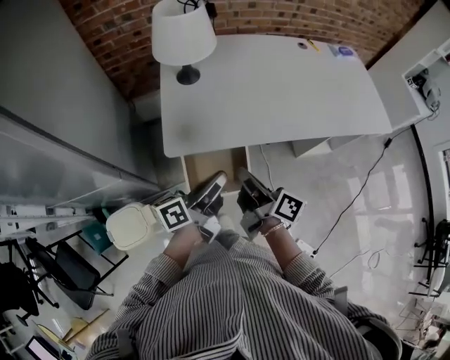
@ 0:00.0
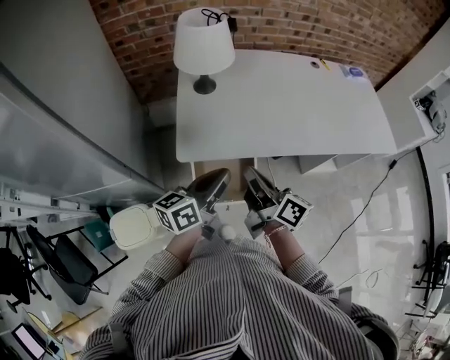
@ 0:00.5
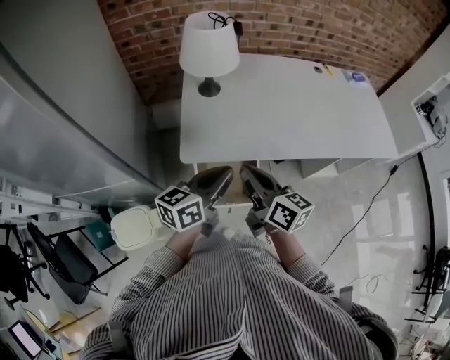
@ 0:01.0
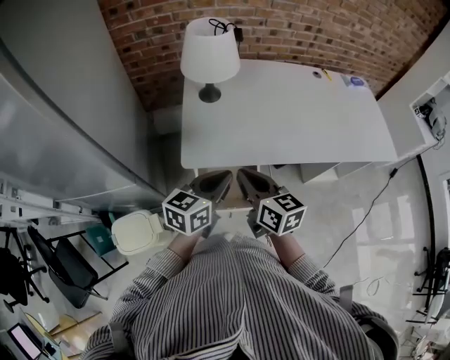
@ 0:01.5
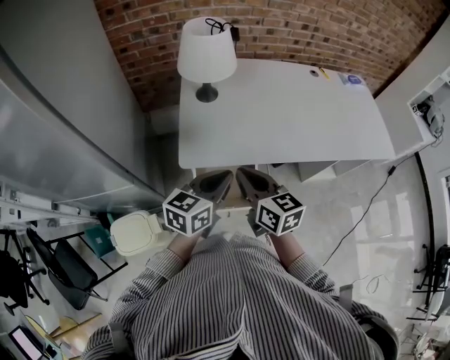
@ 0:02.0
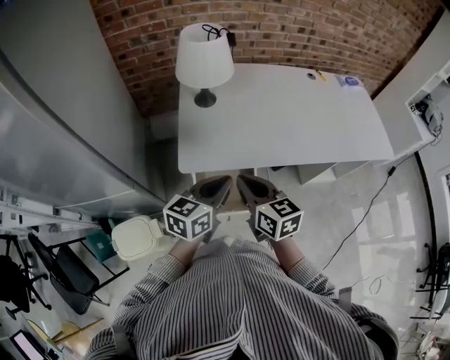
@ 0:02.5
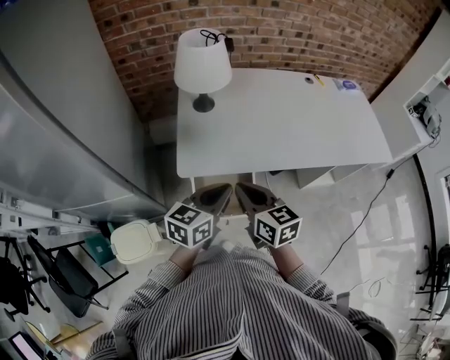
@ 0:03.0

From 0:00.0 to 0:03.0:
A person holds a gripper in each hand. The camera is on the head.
From 0:00.0 to 0:01.5: The left gripper rolls clockwise, seen from behind, by roughly 40 degrees. The right gripper changes place by approximately 5 cm, and rolls counterclockwise, seen from behind, by about 50 degrees.
From 0:01.5 to 0:03.0: The grippers make only small movements.

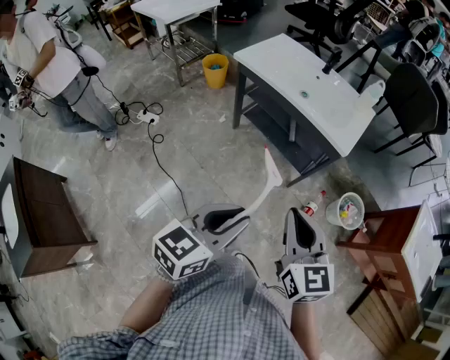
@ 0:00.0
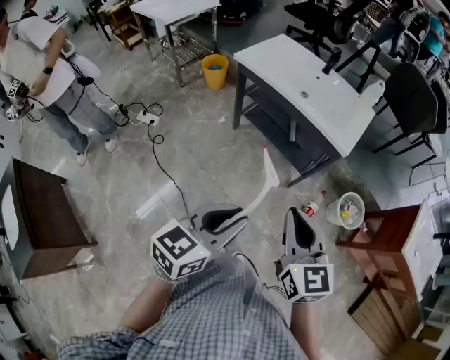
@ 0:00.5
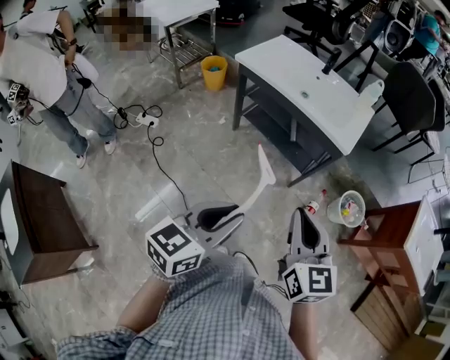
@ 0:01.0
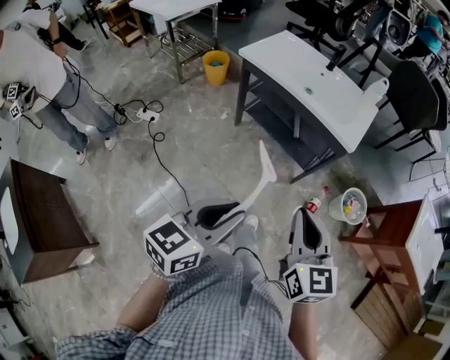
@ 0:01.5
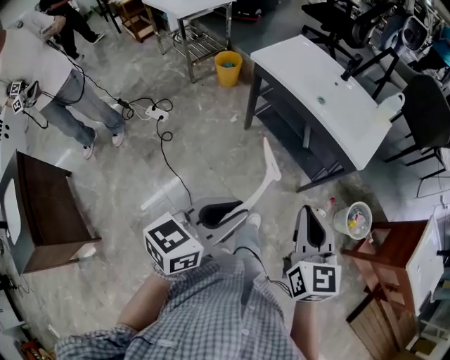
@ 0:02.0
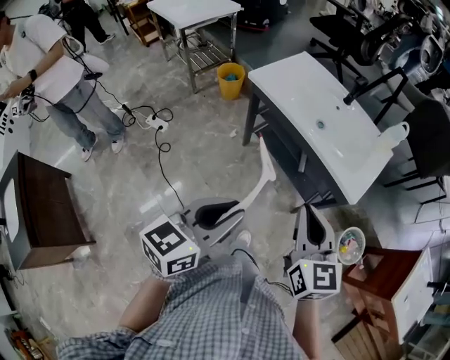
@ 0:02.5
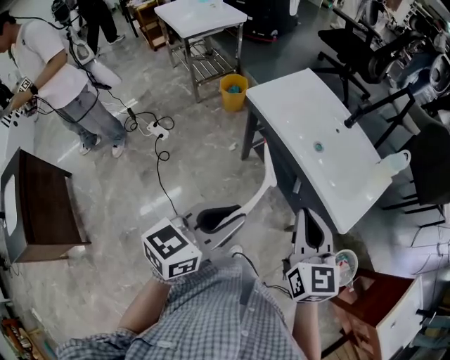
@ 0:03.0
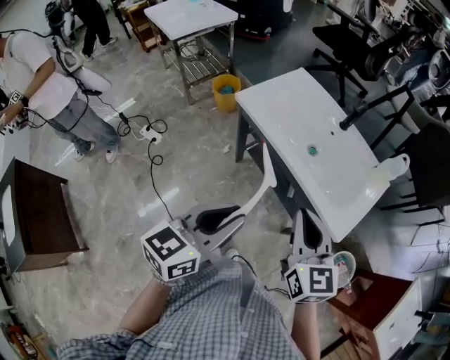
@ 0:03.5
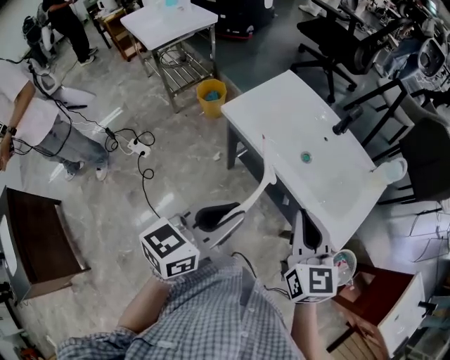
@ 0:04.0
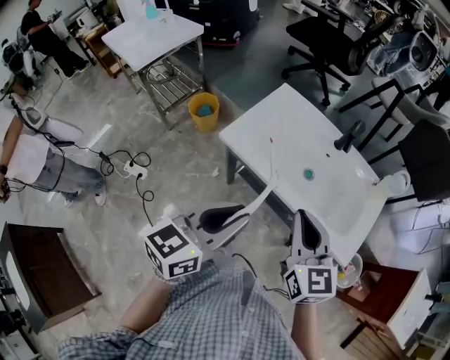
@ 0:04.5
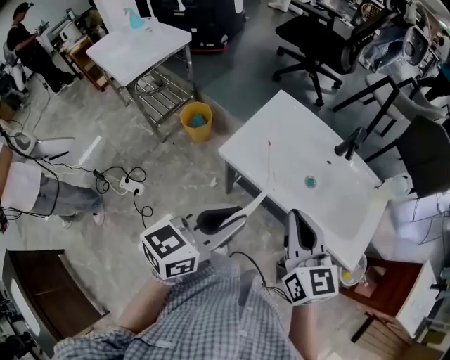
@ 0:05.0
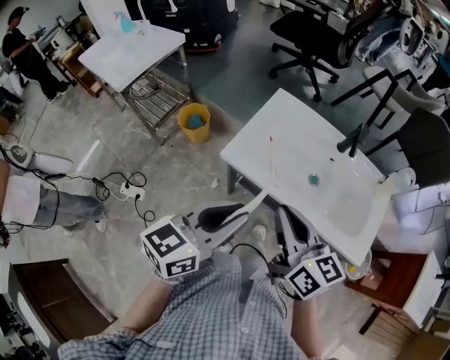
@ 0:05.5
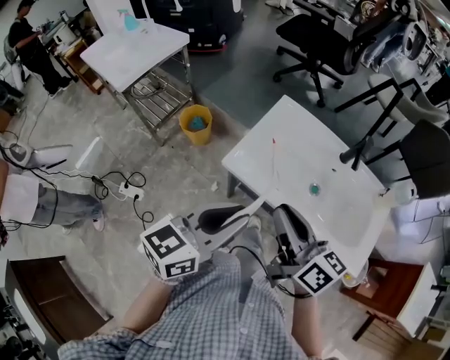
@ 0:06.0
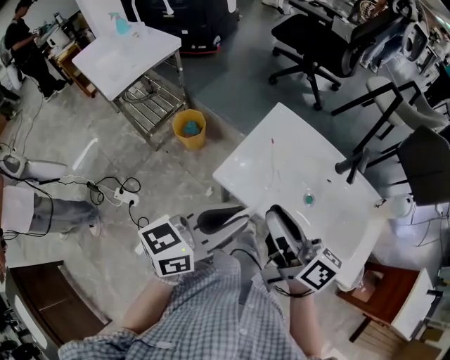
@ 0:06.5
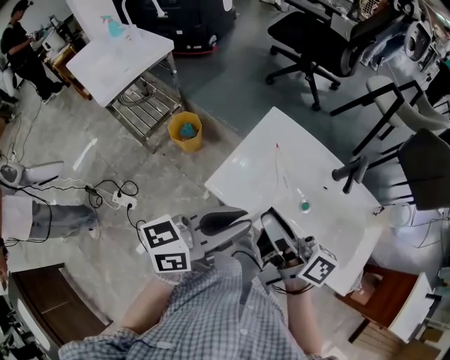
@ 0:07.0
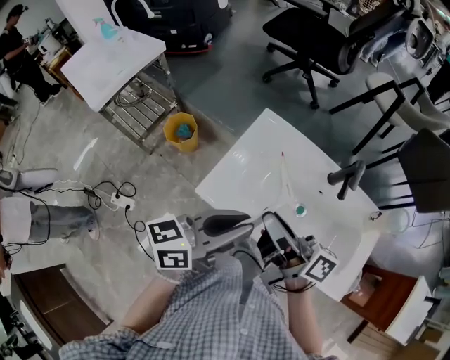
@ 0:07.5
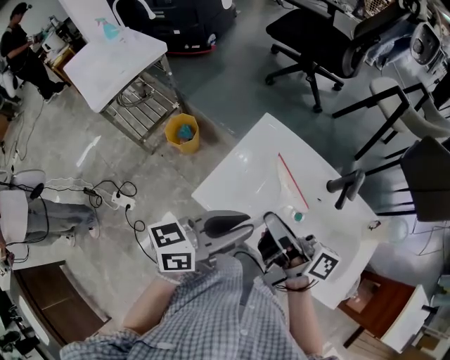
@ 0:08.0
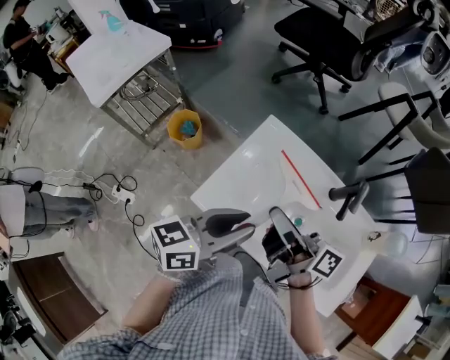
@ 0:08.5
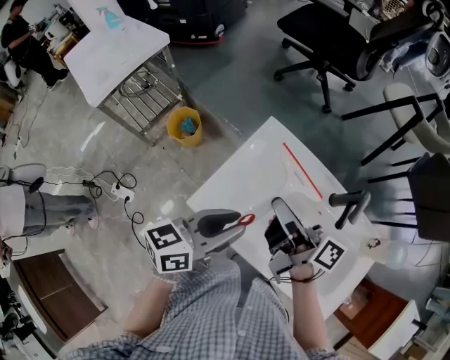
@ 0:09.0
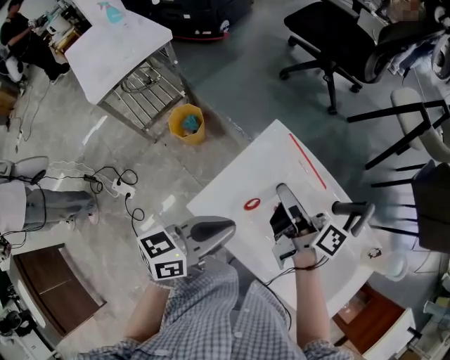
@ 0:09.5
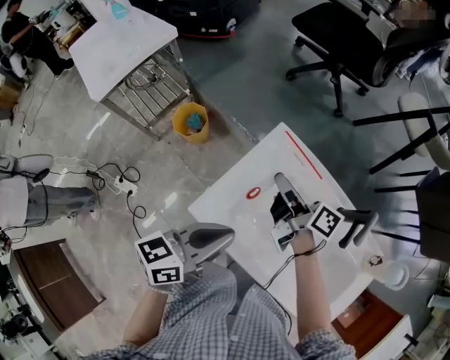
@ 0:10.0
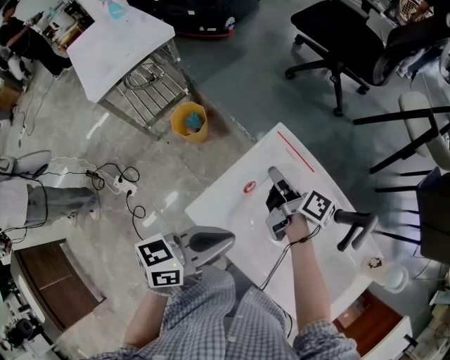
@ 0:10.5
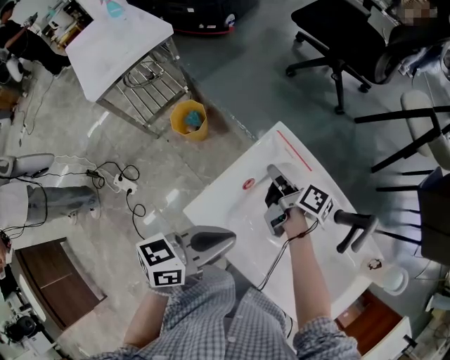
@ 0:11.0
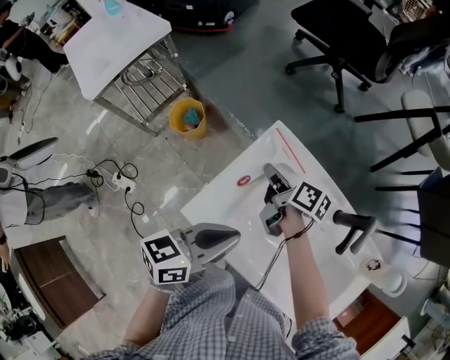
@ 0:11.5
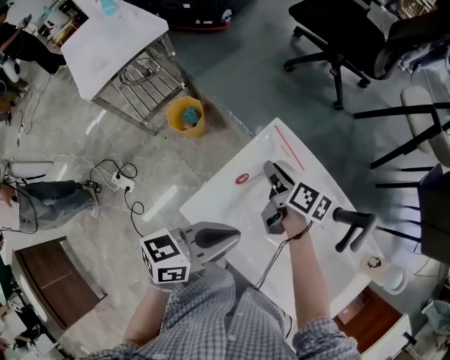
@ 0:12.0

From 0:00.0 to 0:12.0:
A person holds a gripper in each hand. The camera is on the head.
From 0:00.0 to 0:02.0: The right gripper ends up about 5 cm from where it was; the left gripper travels to the left by approximately 5 cm.
From 0:02.0 to 0:04.0: The two grippers go some 35 cm forward.
From 0:04.0 to 0:06.0: The left gripper travels forward and to the left by about 20 cm. Meanwhile the right gripper shifts roughly 25 cm to the left and forward, and changes its angle by about 40 degrees.
From 0:06.0 to 0:08.0: The left gripper travels forward and to the right by some 15 cm. Meanwhile the right gripper shifts approximately 15 cm forward, rotates roughly 40 degrees, and opens and closes again.
From 0:08.0 to 0:10.0: The right gripper goes some 20 cm forward and downward, while the left gripper shifts about 5 cm downward.
From 0:10.0 to 0:12.0: The right gripper travels downward by some 10 cm, and rotates some 20 degrees.

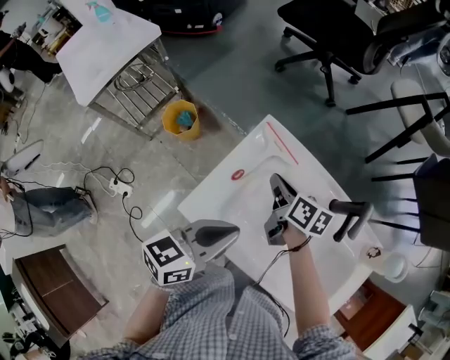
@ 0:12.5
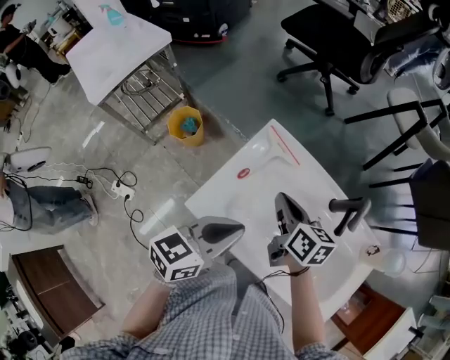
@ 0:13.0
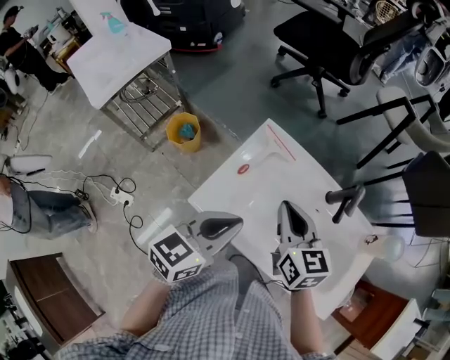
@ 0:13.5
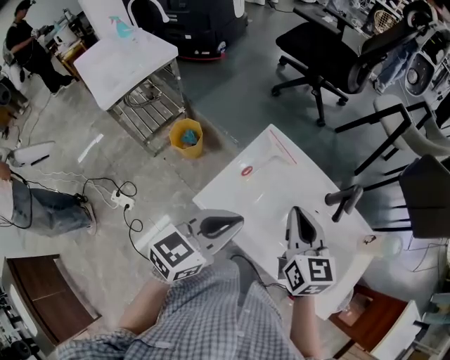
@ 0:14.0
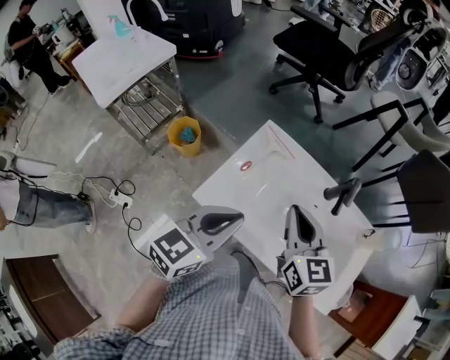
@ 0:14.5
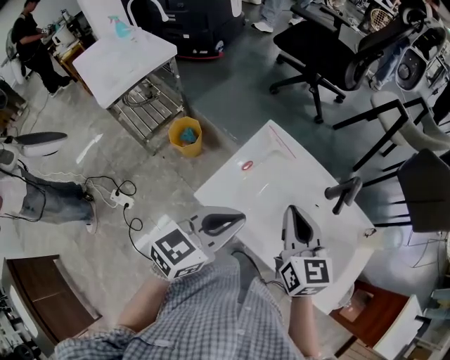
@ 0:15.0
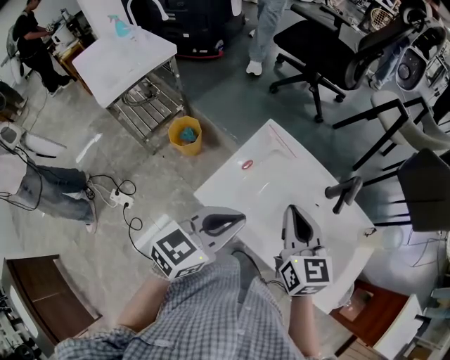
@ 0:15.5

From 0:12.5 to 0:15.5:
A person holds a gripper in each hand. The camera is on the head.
From 0:12.5 to 0:14.0: The right gripper is displaced upward and backward by some 20 cm, and turns by some 40 degrees. Meanwhile the left gripper is displaced upward by approximately 5 cm.
From 0:14.0 to 0:15.5: The grippers make only small movements.

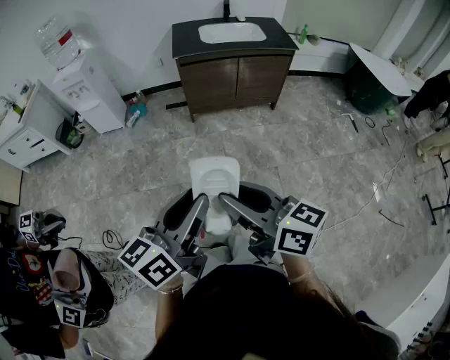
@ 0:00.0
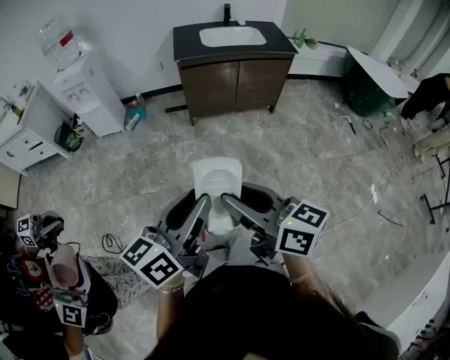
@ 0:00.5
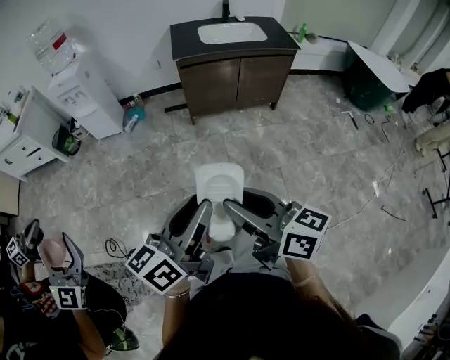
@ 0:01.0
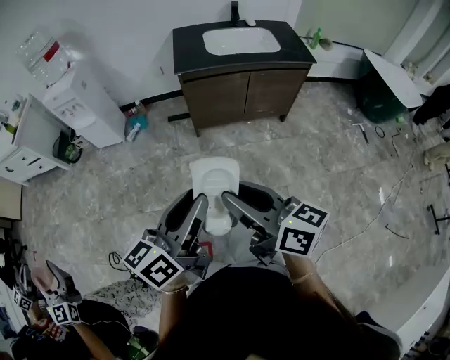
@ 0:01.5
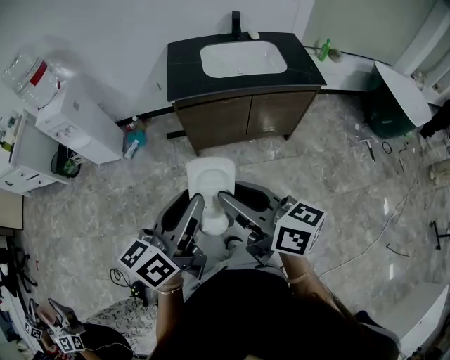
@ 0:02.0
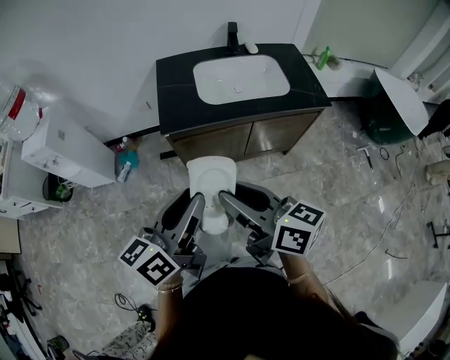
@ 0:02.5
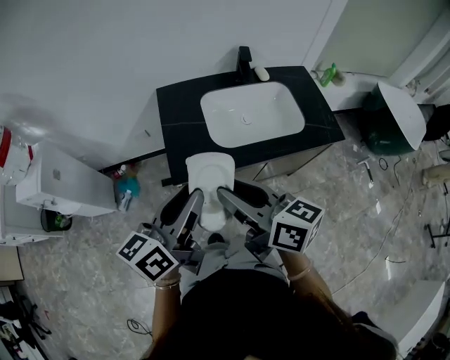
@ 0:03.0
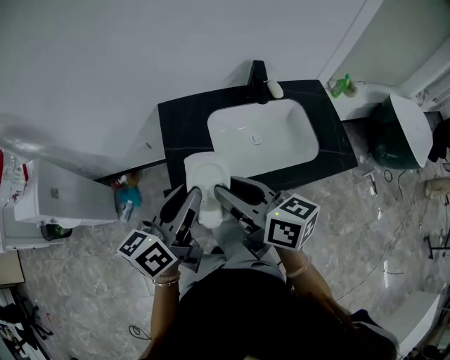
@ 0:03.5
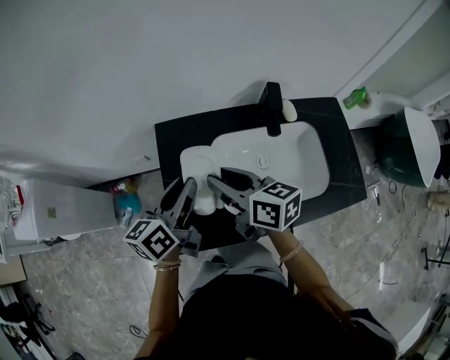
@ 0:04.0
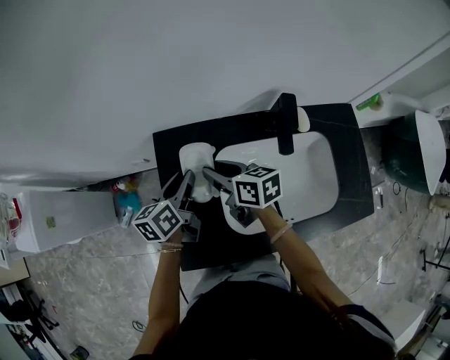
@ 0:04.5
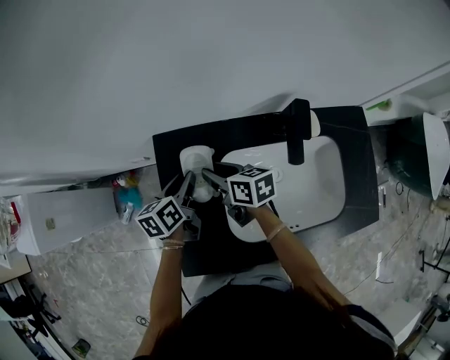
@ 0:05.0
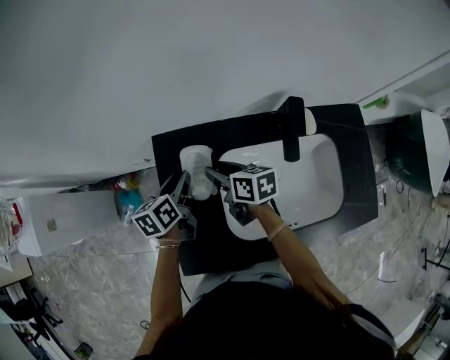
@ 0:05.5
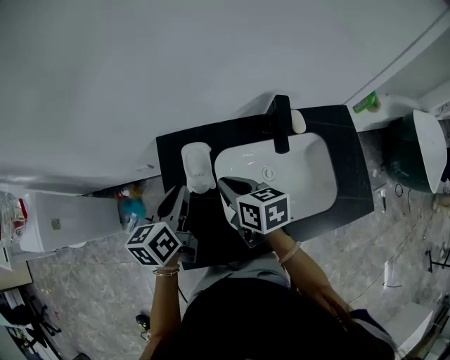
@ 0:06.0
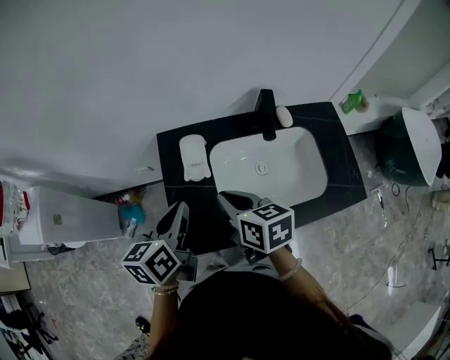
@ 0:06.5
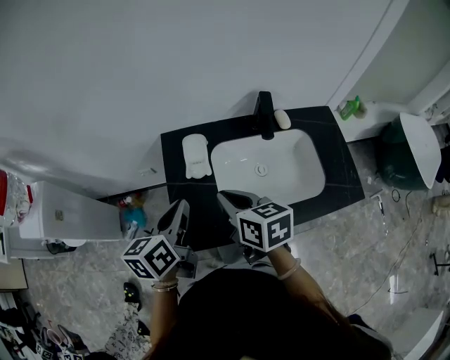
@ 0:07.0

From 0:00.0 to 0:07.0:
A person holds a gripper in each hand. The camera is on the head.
From 0:00.0 to 0:02.0: Both grippers travel together forward, about 35 cm.
From 0:02.0 to 0:03.5: Both grippers are carried forward, approximately 50 cm.
From 0:03.5 to 0:05.0: The two grippers go roughly 35 cm forward and downward. The right gripper swivels about 30 degrees. The left gripper swivels some 30 degrees.
From 0:05.0 to 0:07.0: The left gripper shifts approximately 25 cm upward and backward, and closes up. The right gripper moves backward and upward, approximately 25 cm, and closes.

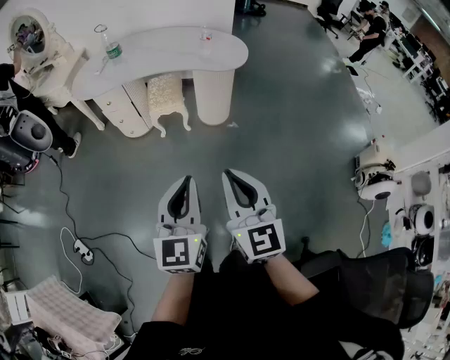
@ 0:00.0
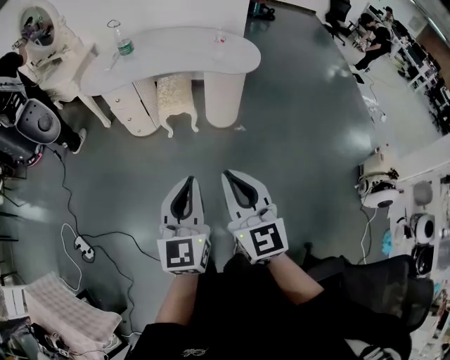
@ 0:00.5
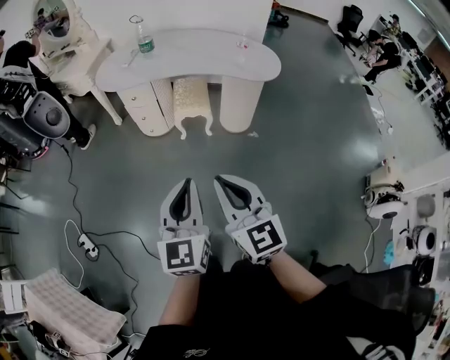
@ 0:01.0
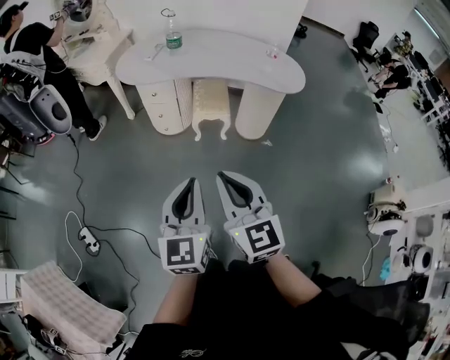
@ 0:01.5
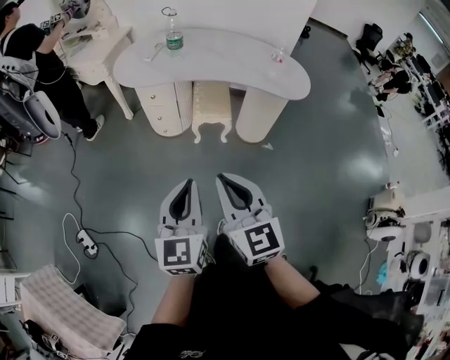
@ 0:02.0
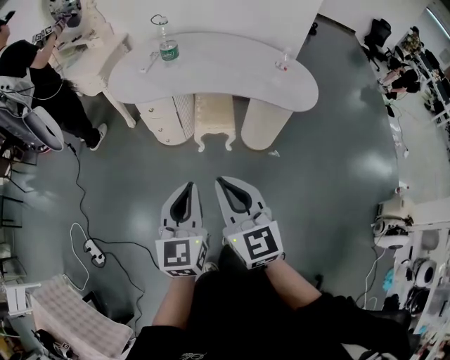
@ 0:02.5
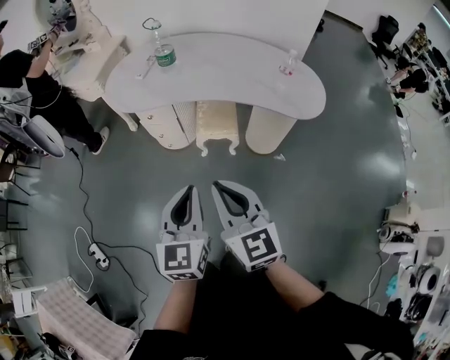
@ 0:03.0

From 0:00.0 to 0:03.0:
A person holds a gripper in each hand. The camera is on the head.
From 0:00.0 to 0:01.5: Both grippers travel together to the left and forward, roughly 25 cm.
From 0:01.5 to 0:03.0: The two grippers go about 20 cm forward.
